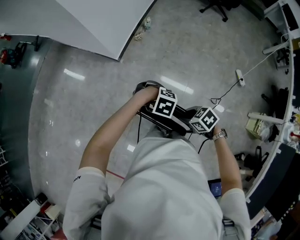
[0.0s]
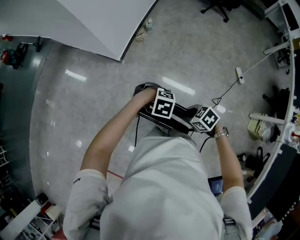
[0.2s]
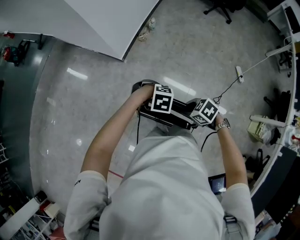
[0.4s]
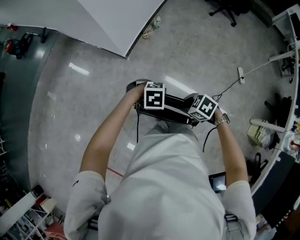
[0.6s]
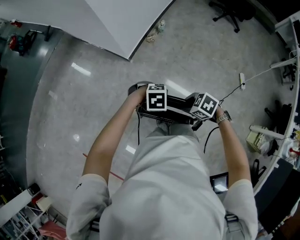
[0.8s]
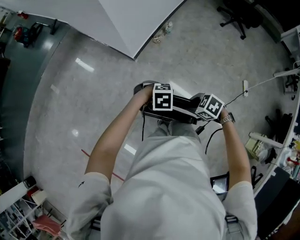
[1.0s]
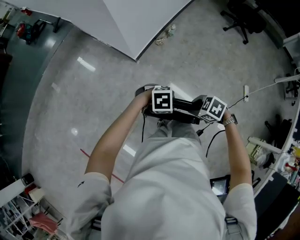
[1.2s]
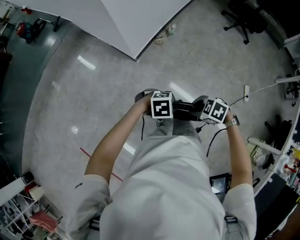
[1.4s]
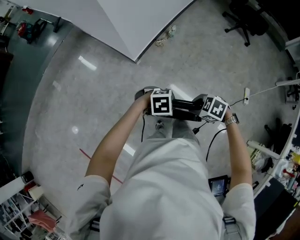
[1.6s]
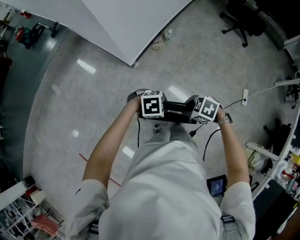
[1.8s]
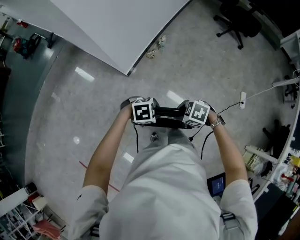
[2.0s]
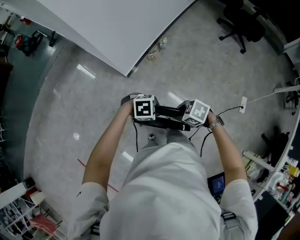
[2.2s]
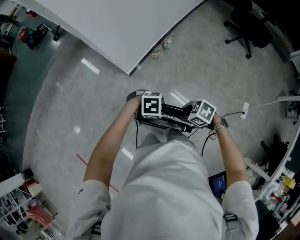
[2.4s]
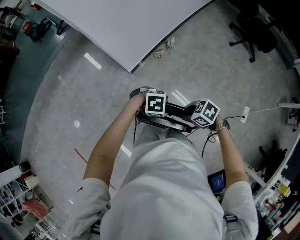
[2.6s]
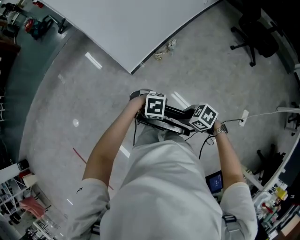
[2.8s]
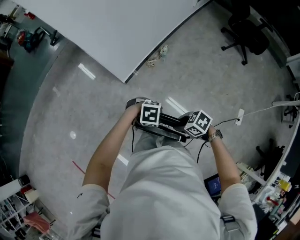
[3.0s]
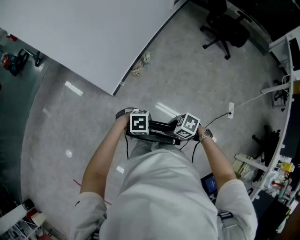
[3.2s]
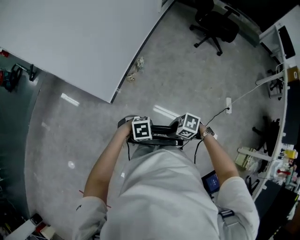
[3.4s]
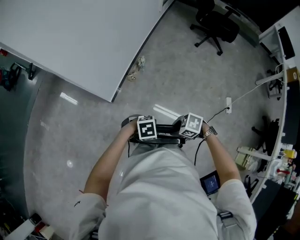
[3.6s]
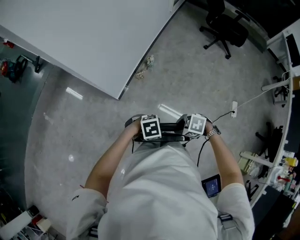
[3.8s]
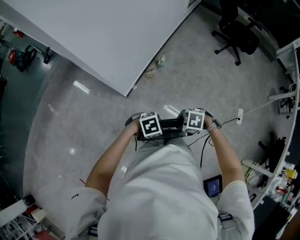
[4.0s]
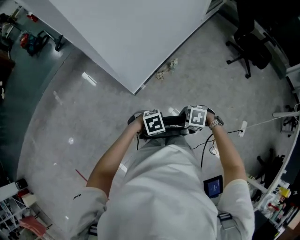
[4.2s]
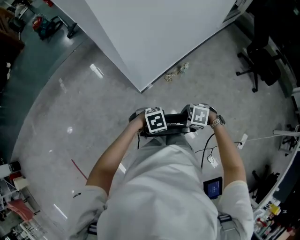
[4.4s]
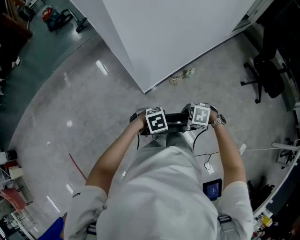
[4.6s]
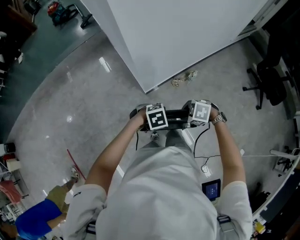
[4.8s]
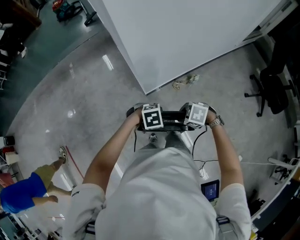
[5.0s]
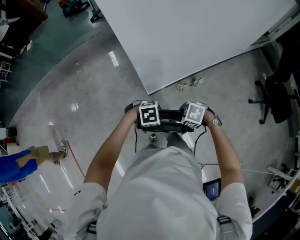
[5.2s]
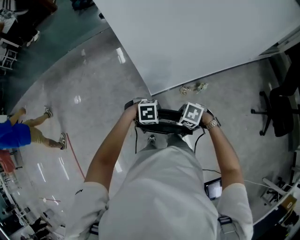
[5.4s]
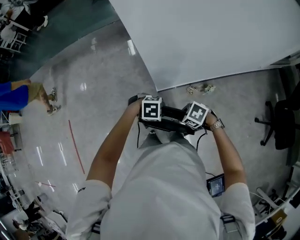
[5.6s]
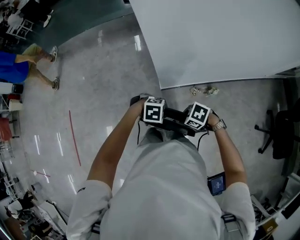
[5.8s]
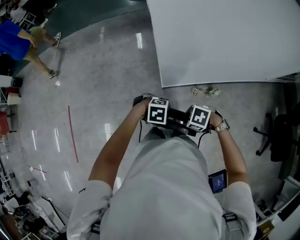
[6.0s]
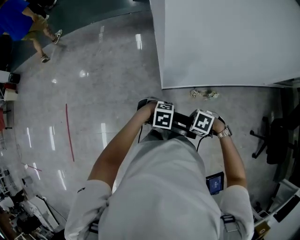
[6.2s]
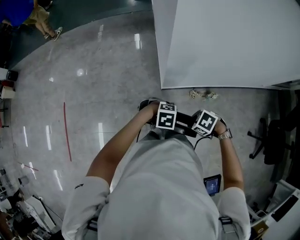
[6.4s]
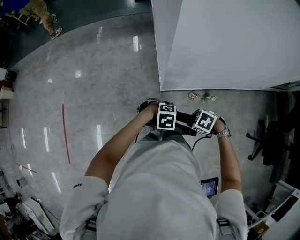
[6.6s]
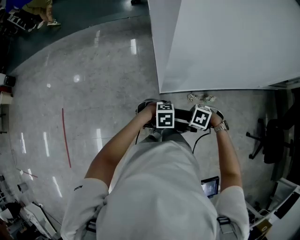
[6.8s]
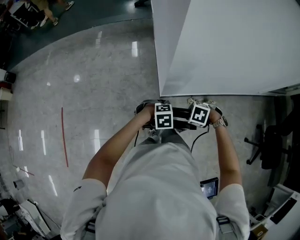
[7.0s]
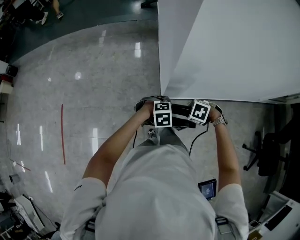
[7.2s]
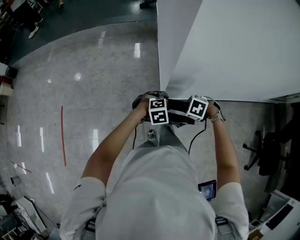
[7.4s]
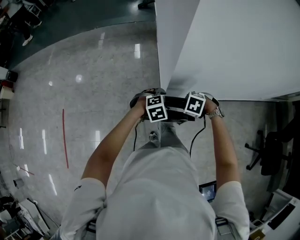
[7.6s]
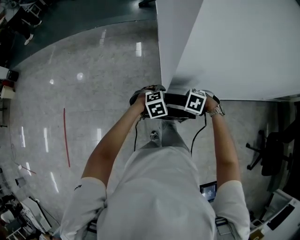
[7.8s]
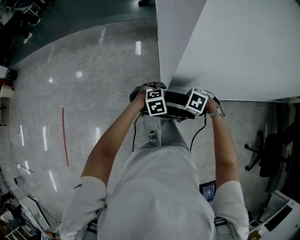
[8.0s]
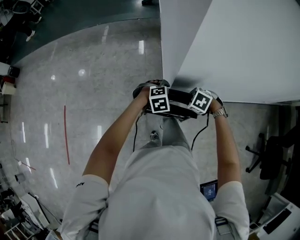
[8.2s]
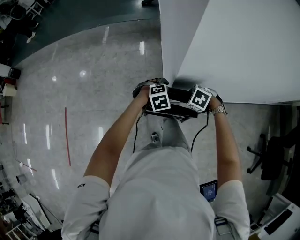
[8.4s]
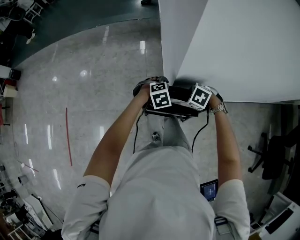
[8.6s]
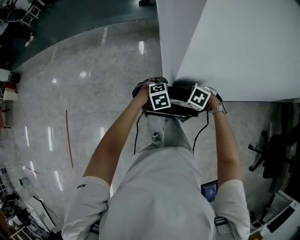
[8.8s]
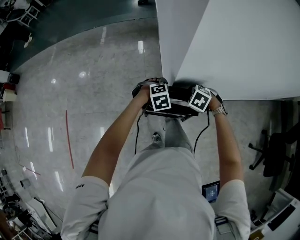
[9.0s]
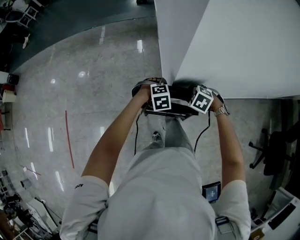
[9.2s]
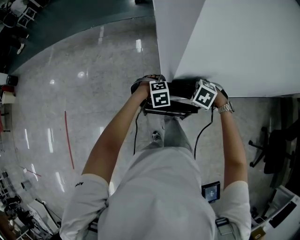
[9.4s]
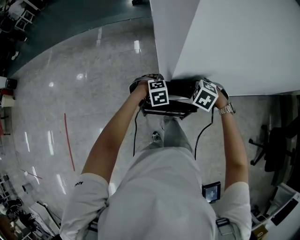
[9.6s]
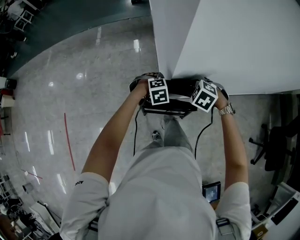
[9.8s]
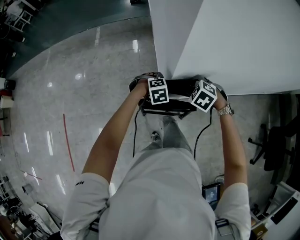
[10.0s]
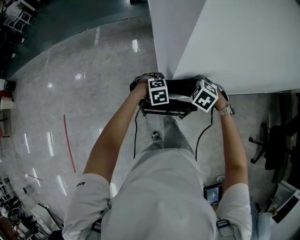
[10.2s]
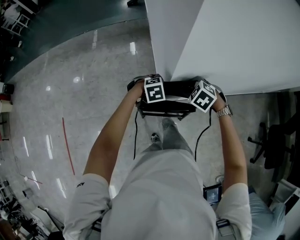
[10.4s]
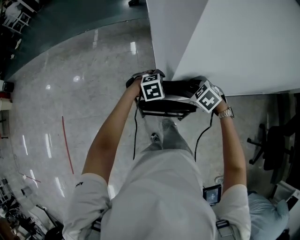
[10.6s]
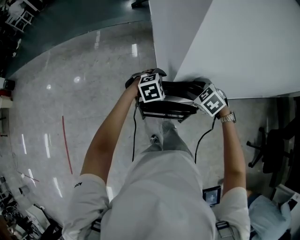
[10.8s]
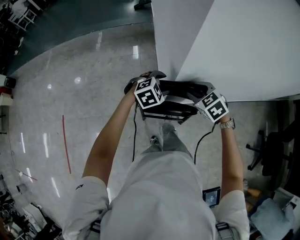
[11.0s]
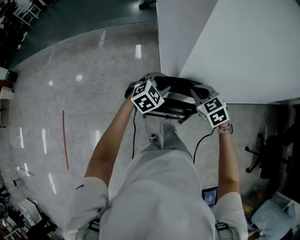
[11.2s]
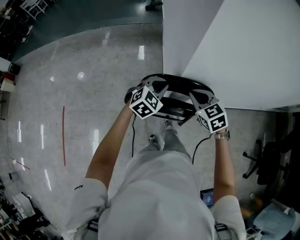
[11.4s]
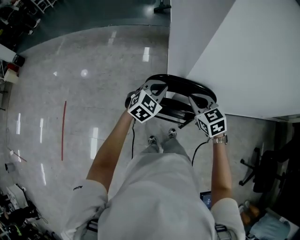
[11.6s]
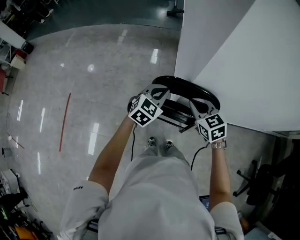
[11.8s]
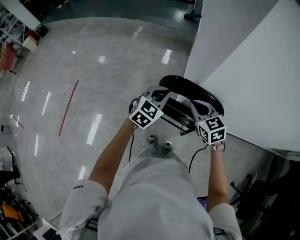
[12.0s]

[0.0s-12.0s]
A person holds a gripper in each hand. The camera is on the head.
0.0s to 1.6s: The left gripper shifts by about 10 cm, and changes its angle by approximately 30 degrees; the right gripper ends up about 15 cm from where it was, and rotates roughly 30 degrees.
1.6s to 3.0s: Both grippers travel together backward, about 15 cm.
3.0s to 4.4s: The left gripper shifts by some 15 cm, and rotates roughly 30 degrees. The right gripper changes place by roughly 15 cm, and swivels roughly 40 degrees.
4.4s to 6.0s: The left gripper moves about 15 cm. Meanwhile the right gripper moves roughly 15 cm, and changes its angle by approximately 30 degrees.
6.0s to 7.6s: The right gripper changes place by roughly 15 cm. Meanwhile the left gripper shifts by roughly 15 cm, changes its angle by roughly 30 degrees, and opens its fingers.
7.6s to 9.0s: The left gripper changes place by about 10 cm. Meanwhile the right gripper ends up some 10 cm from where it was.
9.0s to 10.4s: The right gripper shifts some 5 cm upward.
10.4s to 12.0s: The right gripper shifts by about 15 cm, angles its fingers upward, by about 40 degrees, and closes its fingers; the left gripper travels upward by approximately 15 cm, tilts its fingers approximately 40 degrees upward, and closes.

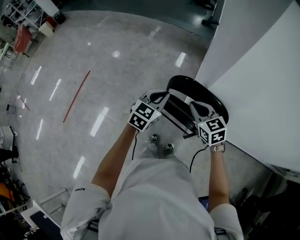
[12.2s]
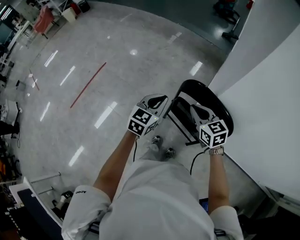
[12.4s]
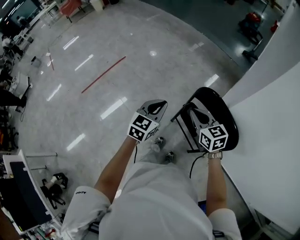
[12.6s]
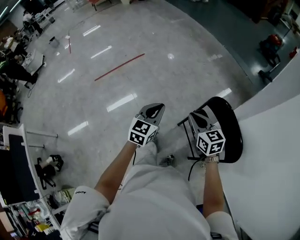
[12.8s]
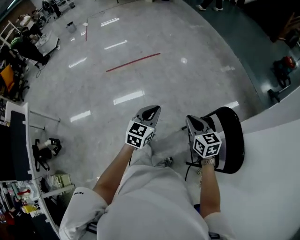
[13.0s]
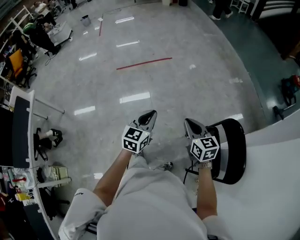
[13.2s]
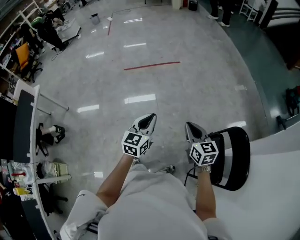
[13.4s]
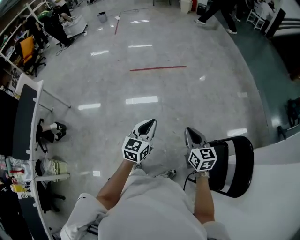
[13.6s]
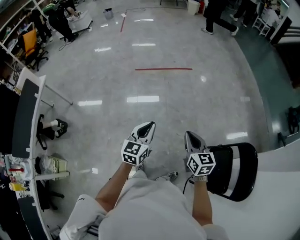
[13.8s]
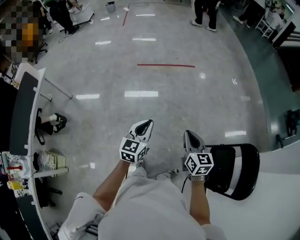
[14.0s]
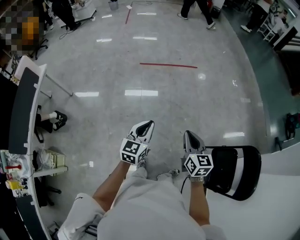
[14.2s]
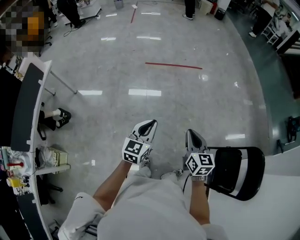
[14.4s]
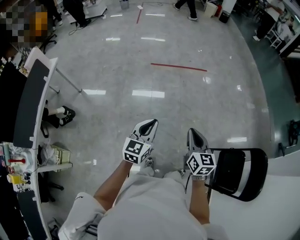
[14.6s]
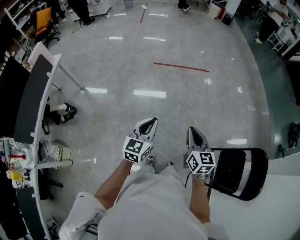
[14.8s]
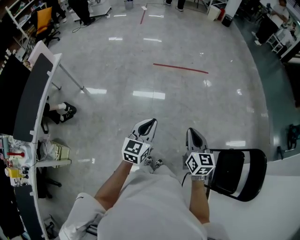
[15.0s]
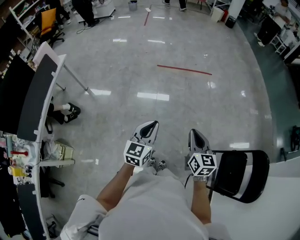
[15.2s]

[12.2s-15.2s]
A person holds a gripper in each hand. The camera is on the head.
12.2s to 13.8s: The pair of grippers is taken some 50 cm. The left gripper changes its angle by approximately 80 degrees. The right gripper changes its angle by roughly 50 degrees.
13.8s to 15.2s: The grippers both shift to the left by approximately 20 cm.

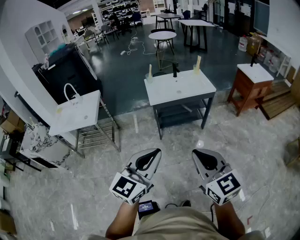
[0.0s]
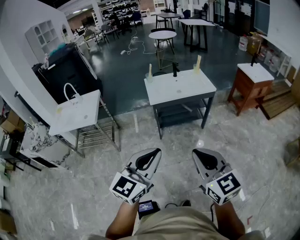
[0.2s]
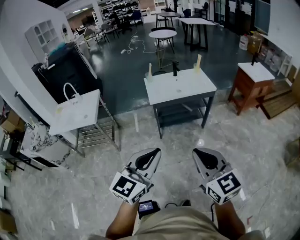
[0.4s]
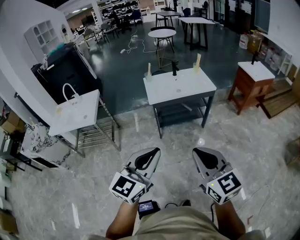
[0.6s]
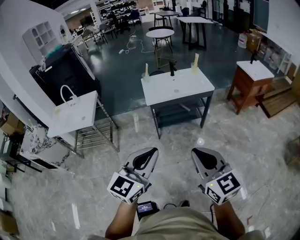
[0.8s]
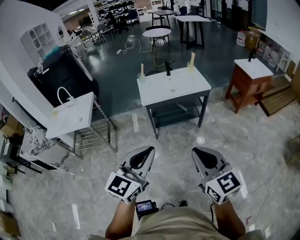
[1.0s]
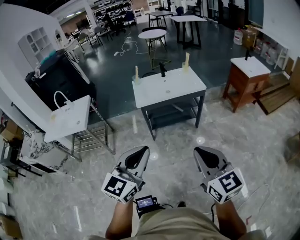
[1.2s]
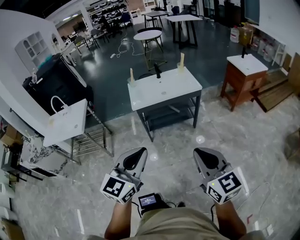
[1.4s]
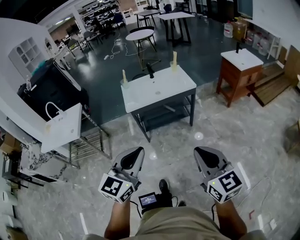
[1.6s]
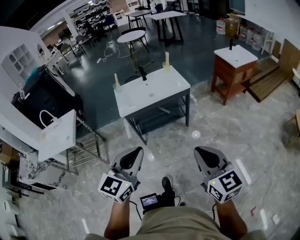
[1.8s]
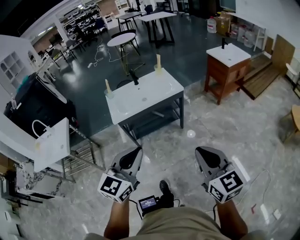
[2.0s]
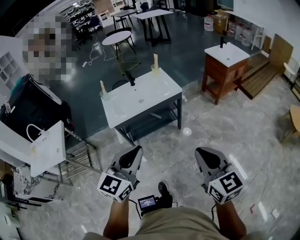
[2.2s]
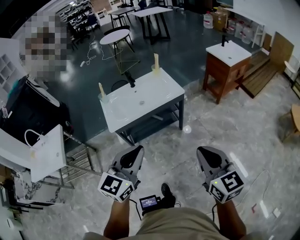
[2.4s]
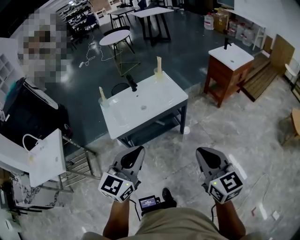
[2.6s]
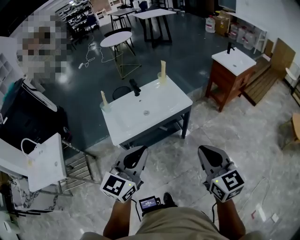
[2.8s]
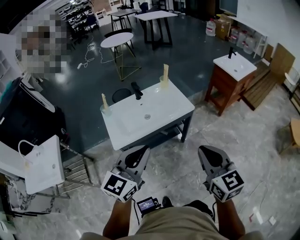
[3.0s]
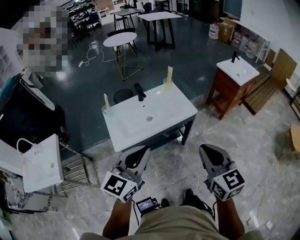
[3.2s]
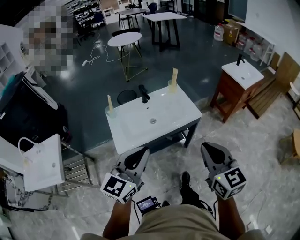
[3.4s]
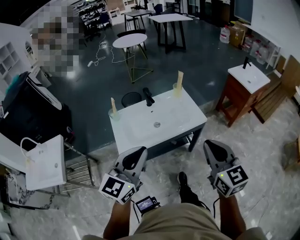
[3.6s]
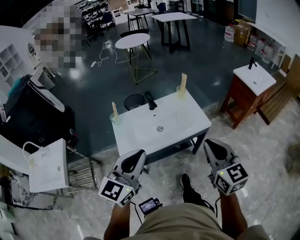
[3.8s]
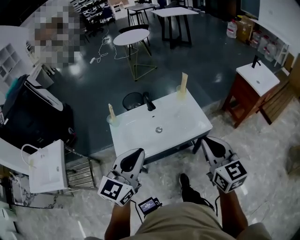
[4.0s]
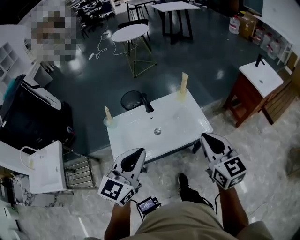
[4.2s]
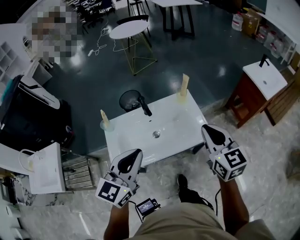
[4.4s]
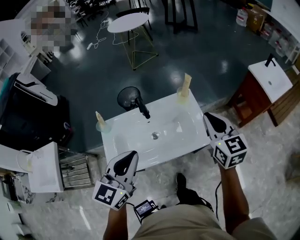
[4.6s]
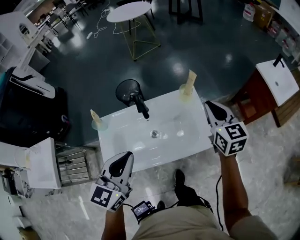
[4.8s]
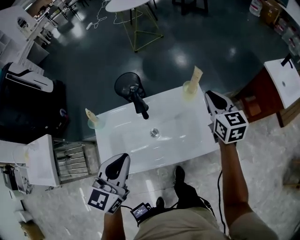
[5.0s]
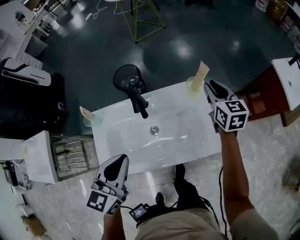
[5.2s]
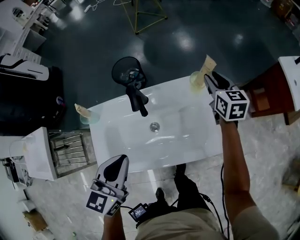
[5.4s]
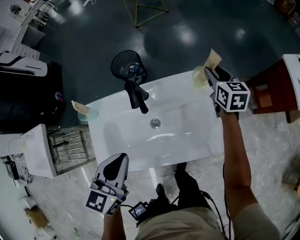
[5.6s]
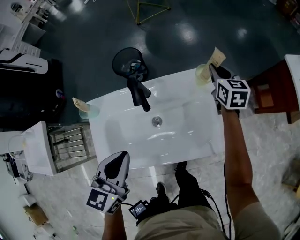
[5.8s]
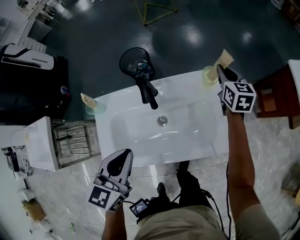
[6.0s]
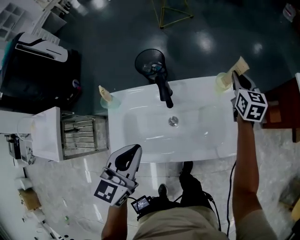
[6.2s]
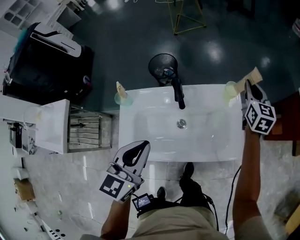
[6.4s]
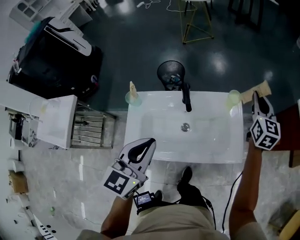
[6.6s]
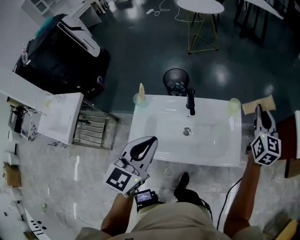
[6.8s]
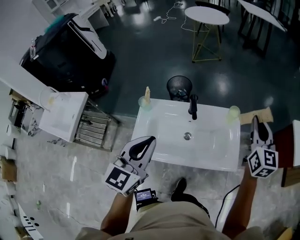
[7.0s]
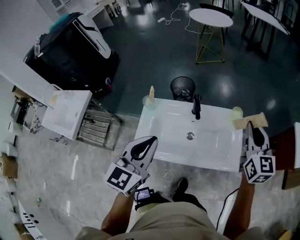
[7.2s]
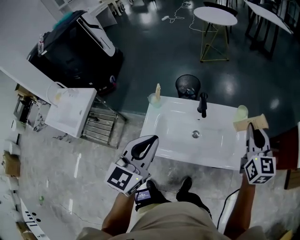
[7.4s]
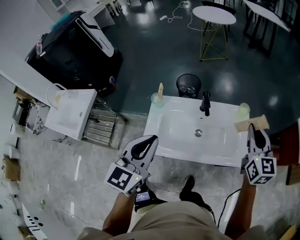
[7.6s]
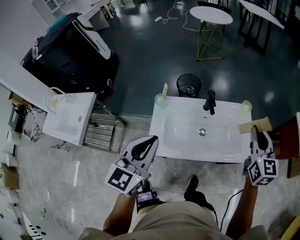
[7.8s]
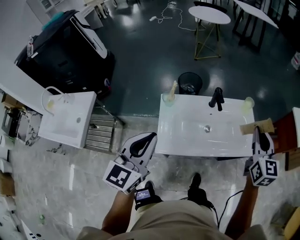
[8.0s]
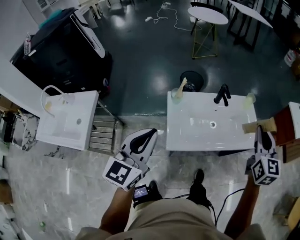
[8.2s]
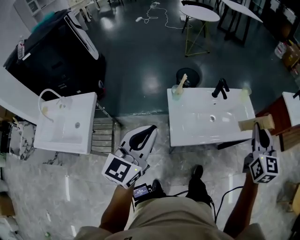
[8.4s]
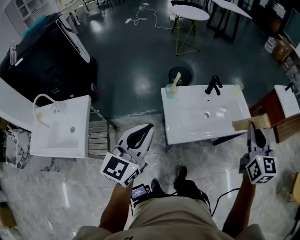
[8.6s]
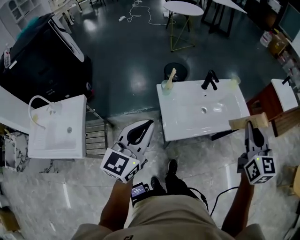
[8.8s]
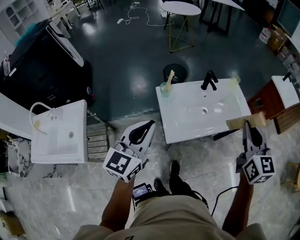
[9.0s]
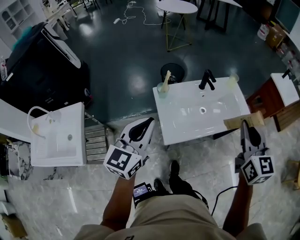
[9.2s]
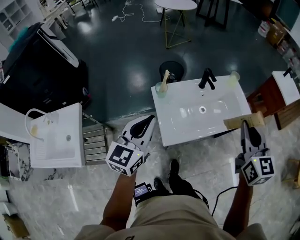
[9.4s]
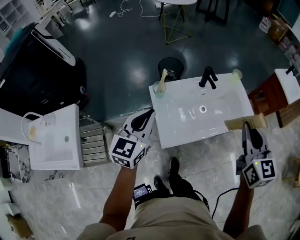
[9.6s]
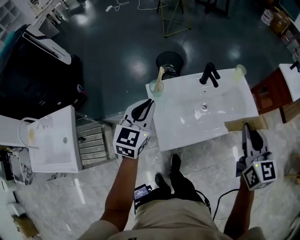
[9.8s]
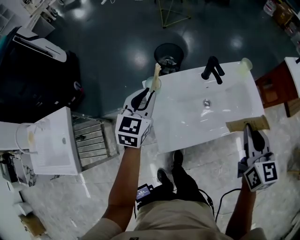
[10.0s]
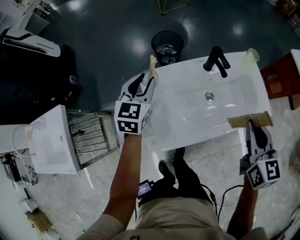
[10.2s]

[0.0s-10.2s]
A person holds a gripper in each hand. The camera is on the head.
0.0s to 1.4s: The left gripper is displaced to the right and forward by roughly 15 cm. The right gripper heads to the right, covering approximately 15 cm.
1.4s to 3.0s: Both grippers move forward, some 40 cm.
3.0s to 4.4s: The grippers both shift forward by roughly 35 cm.
4.4s to 5.8s: The left gripper goes about 25 cm downward and forward, and rotates roughly 30 degrees; the right gripper moves forward and downward, approximately 50 cm, and opens and closes again.
5.8s to 7.2s: The right gripper travels upward and backward by about 40 cm, and changes its angle by about 20 degrees. Meanwhile the left gripper is displaced upward and backward by about 25 cm, and turns by approximately 20 degrees.
7.2s to 8.8s: The left gripper heads to the left and backward, covering about 35 cm, and swivels approximately 20 degrees. The right gripper is displaced backward and to the left by roughly 40 cm.
8.8s to 10.2s: The right gripper goes some 25 cm downward and forward. Meanwhile the left gripper moves forward and downward, about 40 cm, swivels roughly 20 degrees, and opens up.
